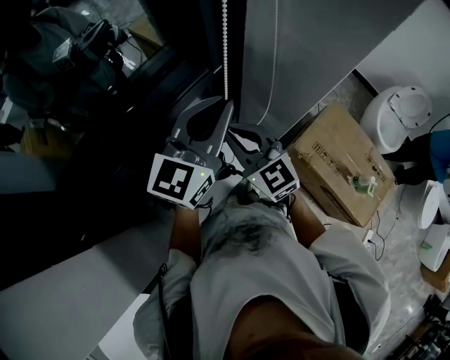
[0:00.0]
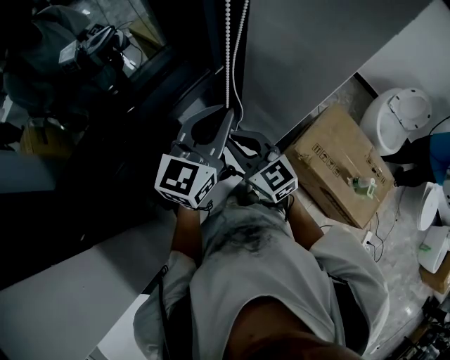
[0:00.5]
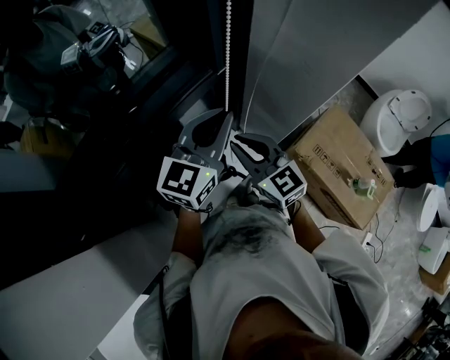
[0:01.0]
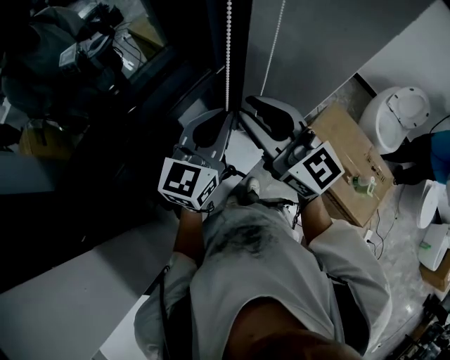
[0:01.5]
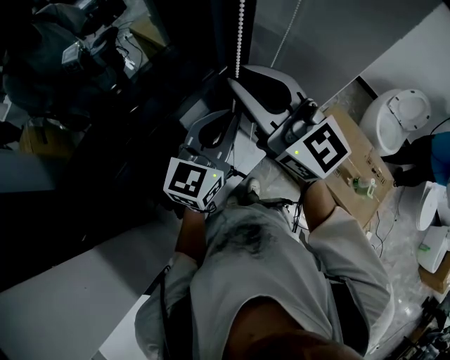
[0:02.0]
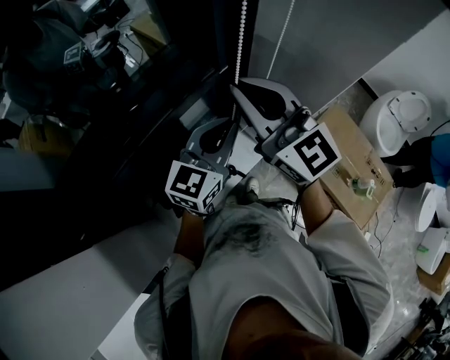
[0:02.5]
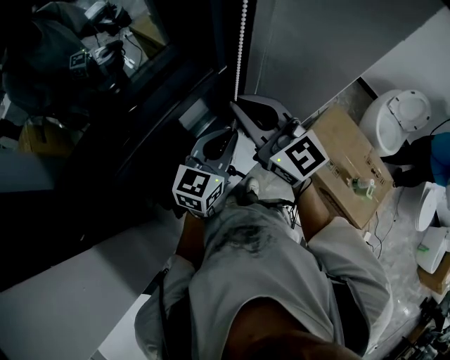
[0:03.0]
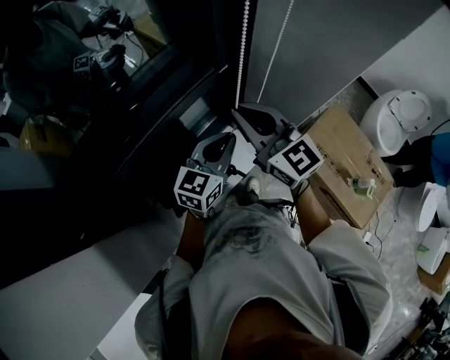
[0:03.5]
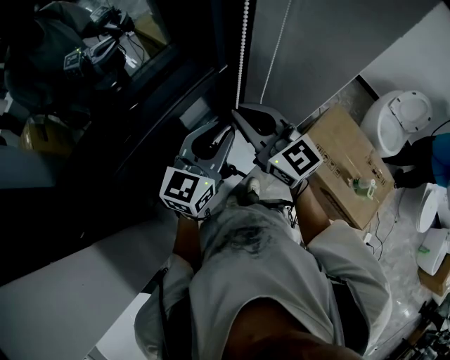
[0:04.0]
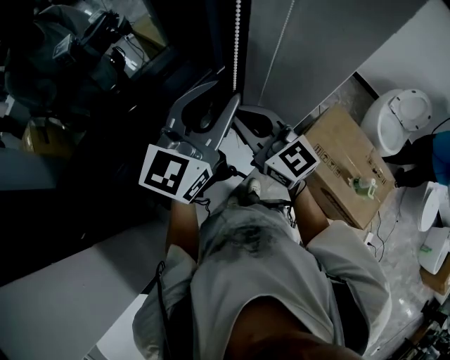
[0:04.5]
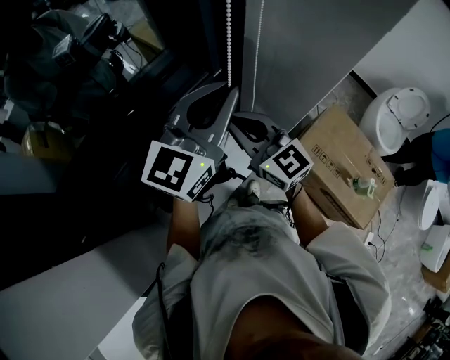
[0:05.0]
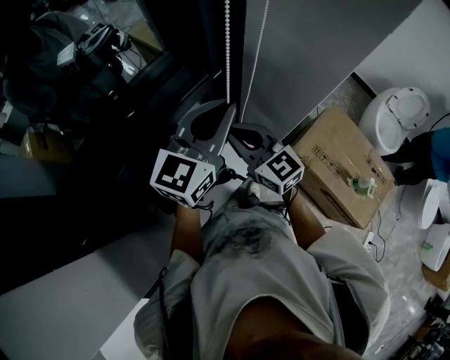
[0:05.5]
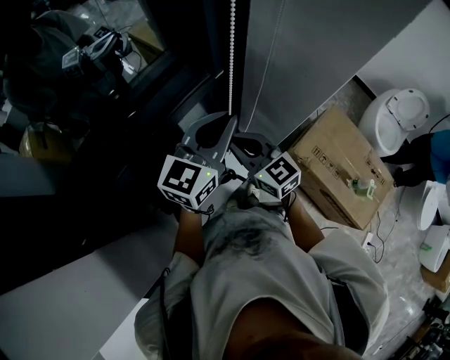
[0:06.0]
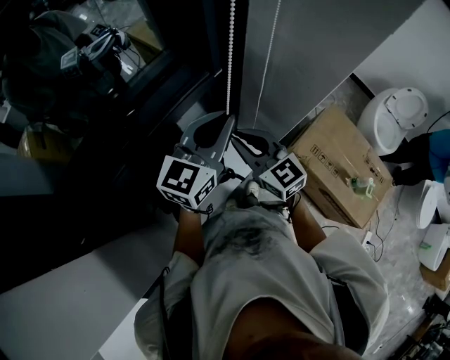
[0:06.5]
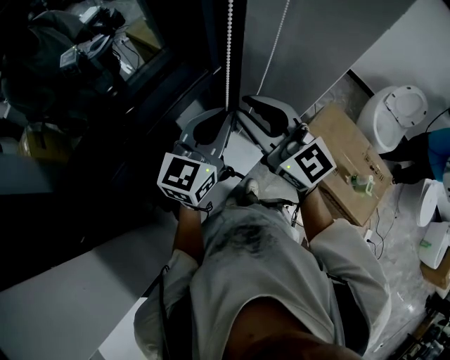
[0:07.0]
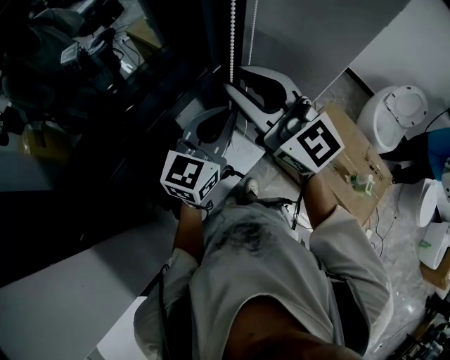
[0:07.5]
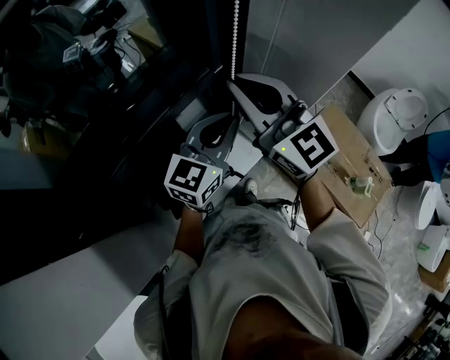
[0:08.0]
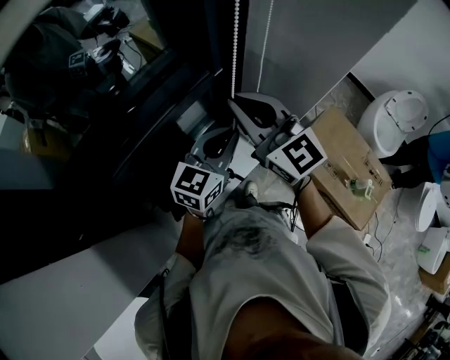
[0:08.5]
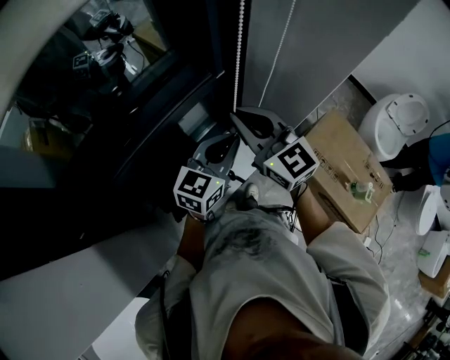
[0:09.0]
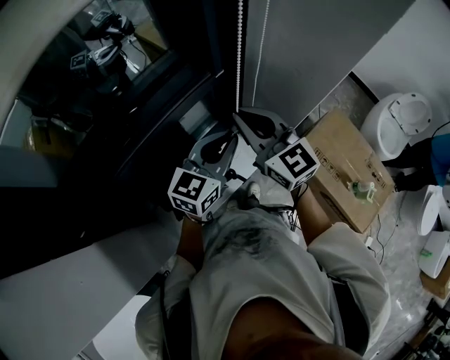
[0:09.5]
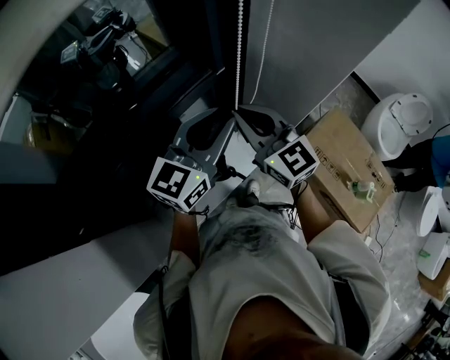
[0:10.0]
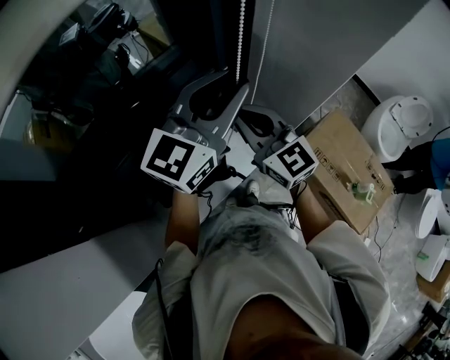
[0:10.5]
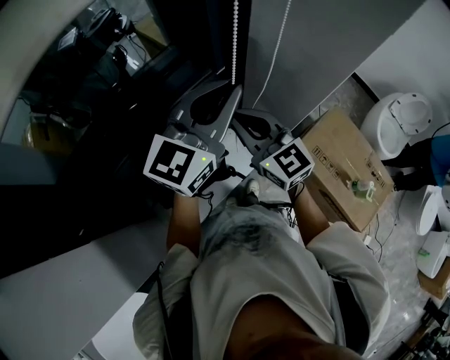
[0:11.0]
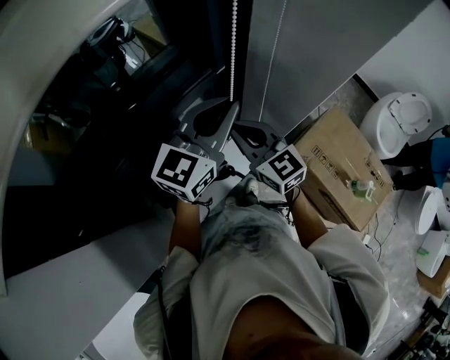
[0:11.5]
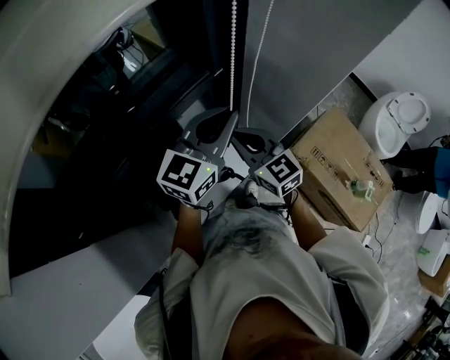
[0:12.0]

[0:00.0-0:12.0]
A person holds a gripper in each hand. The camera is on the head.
0:00.0 to 0:02.0: The right gripper moves upward, about 20 cm, and changes its angle by some 20 degrees; the left gripper moves downward, some 5 cm.
0:02.0 to 0:04.0: The left gripper opens its fingers. The right gripper travels downward by some 10 cm.
0:04.0 to 0:06.0: The right gripper heads downward, covering some 10 cm. The left gripper moves some 15 cm upward and comes back.
0:06.0 to 0:08.0: The right gripper goes approximately 20 cm upward, and swivels approximately 20 degrees.
0:08.0 to 0:10.0: The right gripper is displaced downward by approximately 10 cm.
0:10.0 to 0:12.0: The left gripper goes upward and returns, about 10 cm each way. Meanwhile the right gripper moves downward, approximately 10 cm.

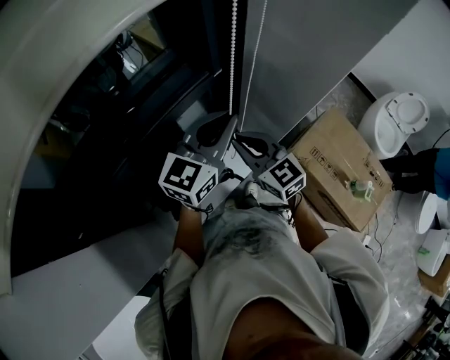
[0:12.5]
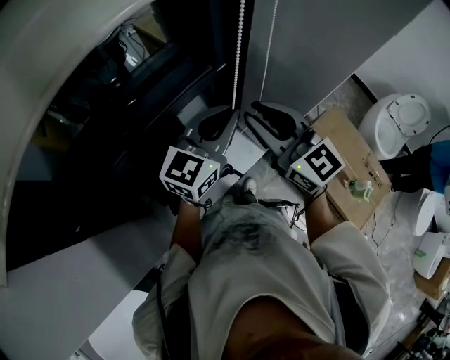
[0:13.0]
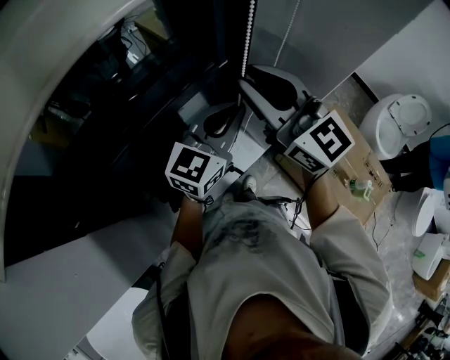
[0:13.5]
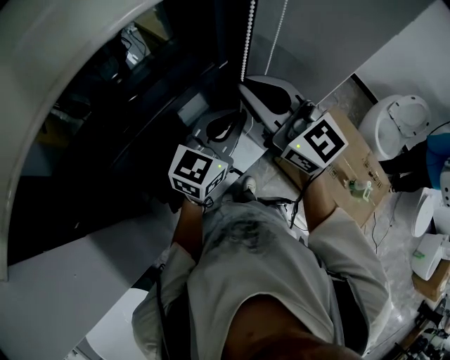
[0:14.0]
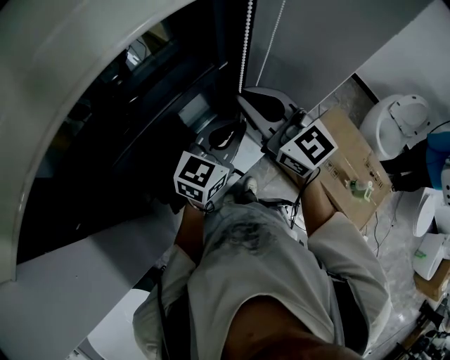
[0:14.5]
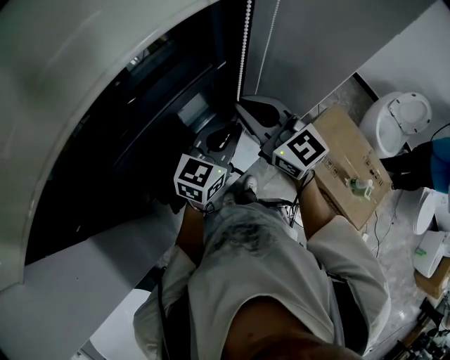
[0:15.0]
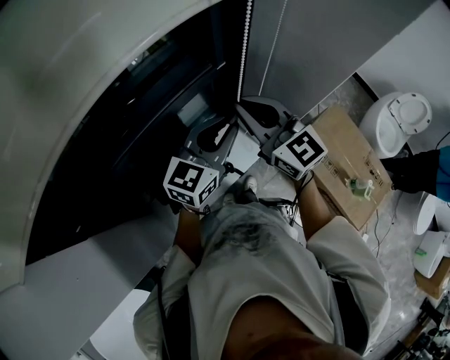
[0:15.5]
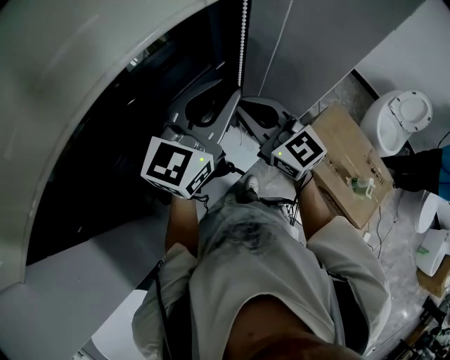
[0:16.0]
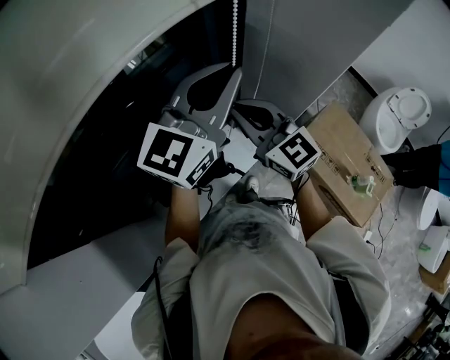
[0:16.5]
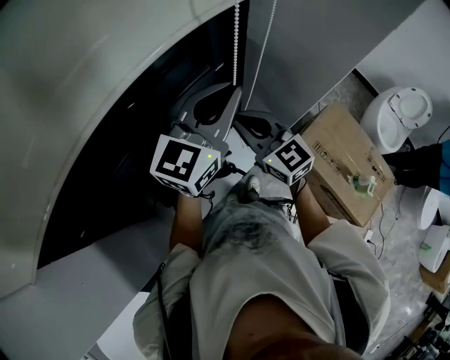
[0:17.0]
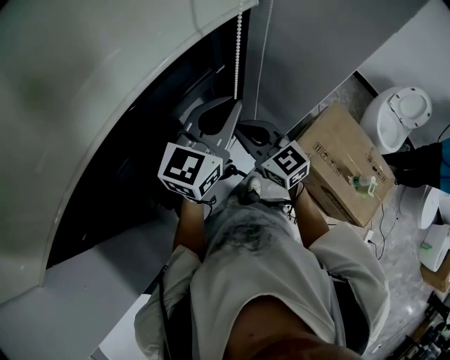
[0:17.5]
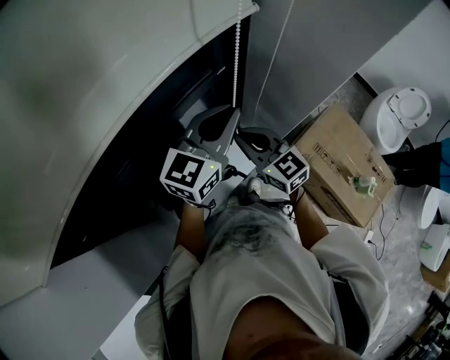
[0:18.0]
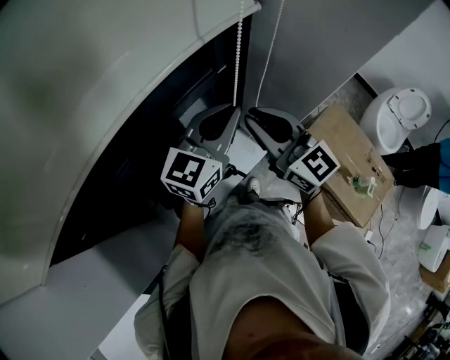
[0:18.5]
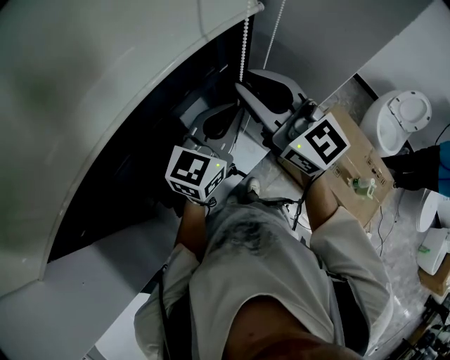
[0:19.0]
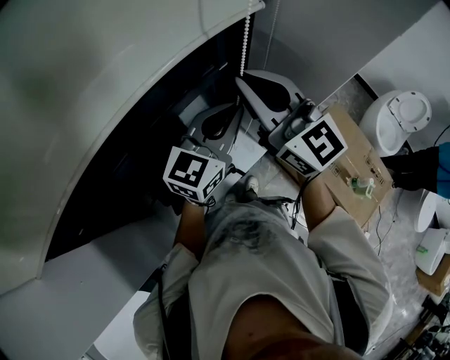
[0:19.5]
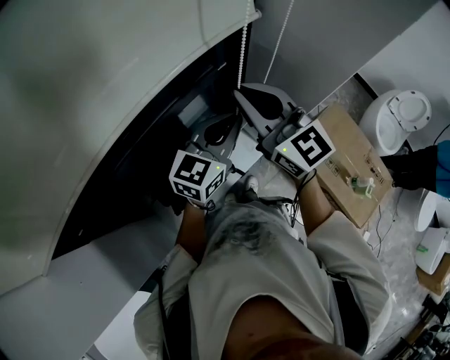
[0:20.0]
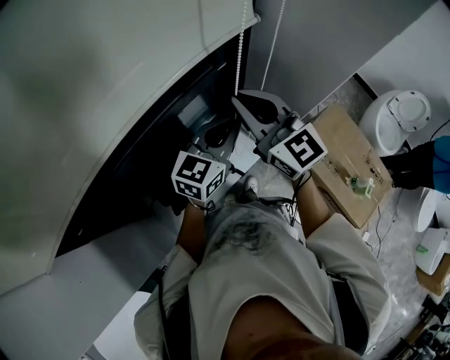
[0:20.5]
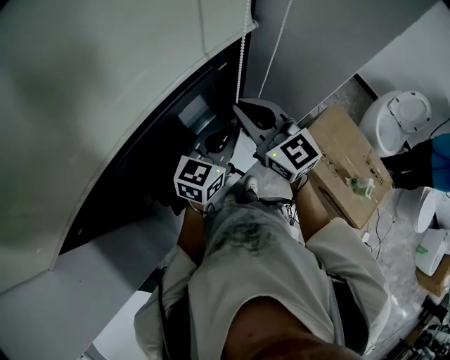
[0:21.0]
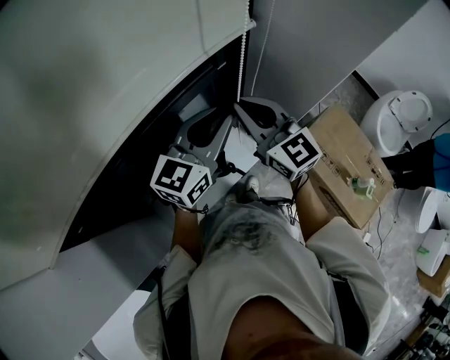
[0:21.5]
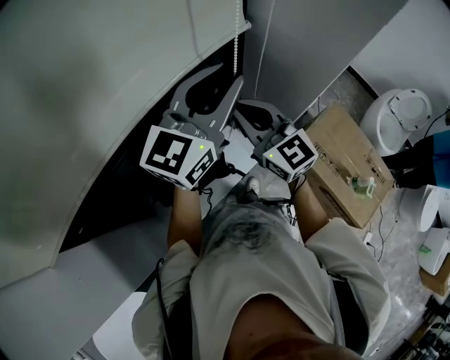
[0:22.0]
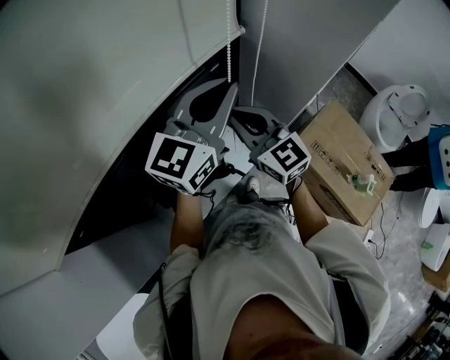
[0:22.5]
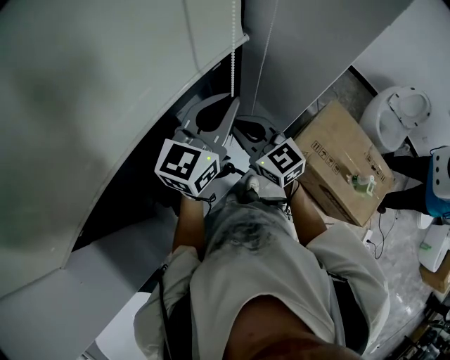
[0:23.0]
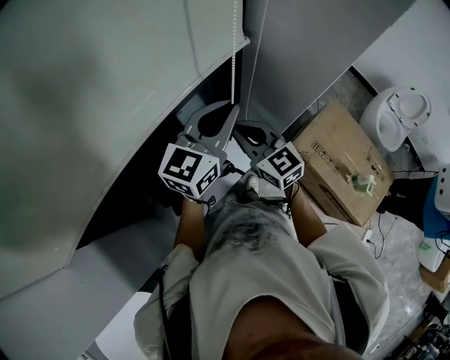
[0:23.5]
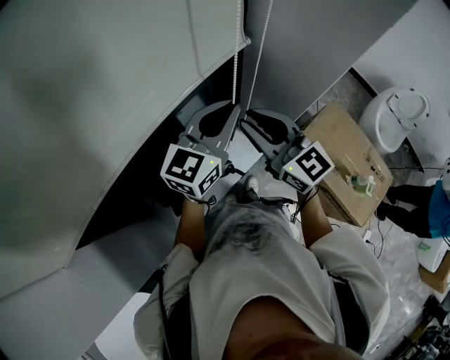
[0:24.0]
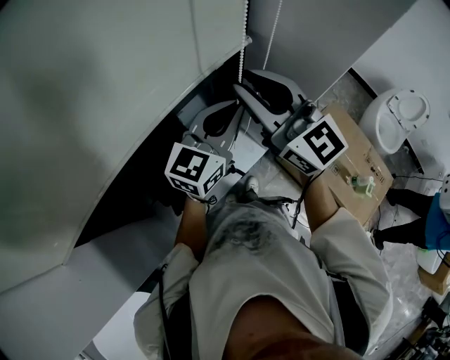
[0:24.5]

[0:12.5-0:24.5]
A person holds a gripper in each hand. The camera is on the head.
0:12.5 to 0:14.5: The right gripper shifts roughly 15 cm upward. Meanwhile the left gripper goes some 5 cm downward.
0:14.5 to 0:16.5: The left gripper is displaced upward by approximately 15 cm, and changes its angle by approximately 20 degrees.
0:16.5 to 0:18.5: The left gripper is displaced downward by roughly 10 cm. The right gripper reaches approximately 10 cm downward, then returns.
0:18.5 to 0:20.5: The right gripper goes upward and returns, about 10 cm each way, while the left gripper moves downward, approximately 5 cm.
0:20.5 to 0:22.5: The right gripper is displaced downward by about 5 cm, while the left gripper shifts roughly 15 cm upward, and opens, then closes again.
0:22.5 to 0:24.5: The right gripper shifts about 10 cm upward. The left gripper travels downward by about 5 cm.

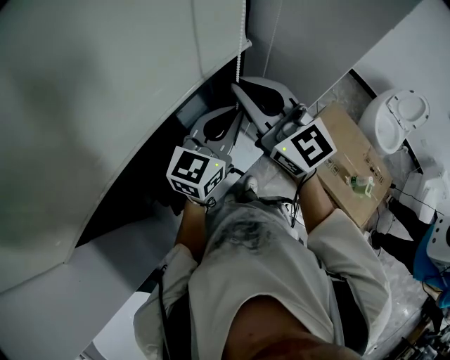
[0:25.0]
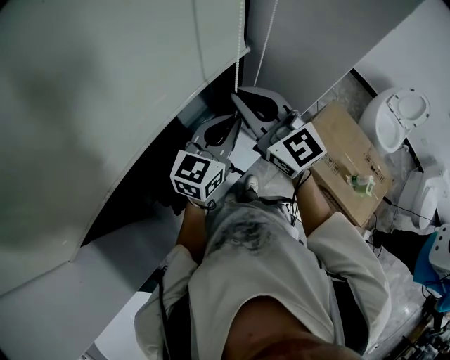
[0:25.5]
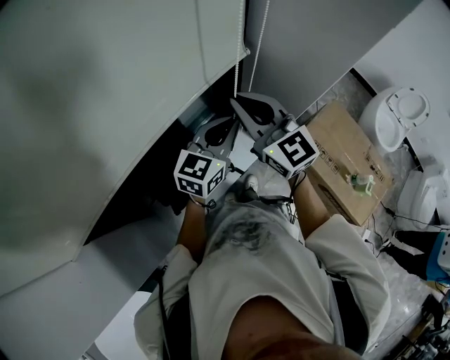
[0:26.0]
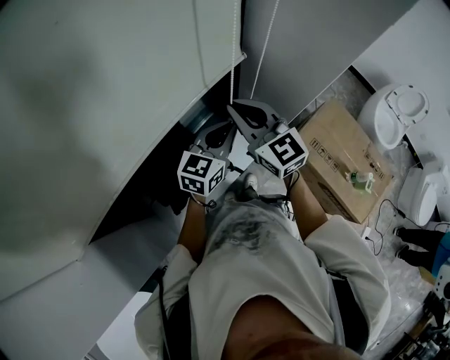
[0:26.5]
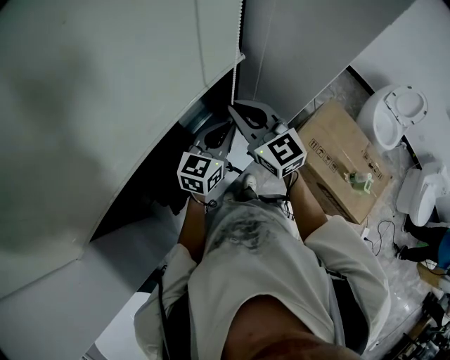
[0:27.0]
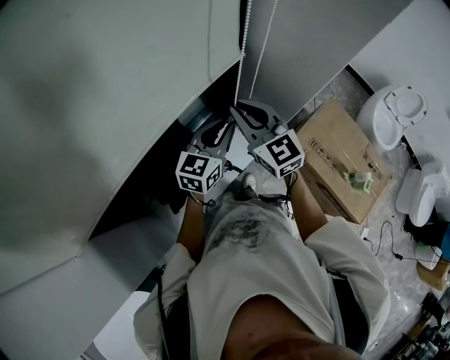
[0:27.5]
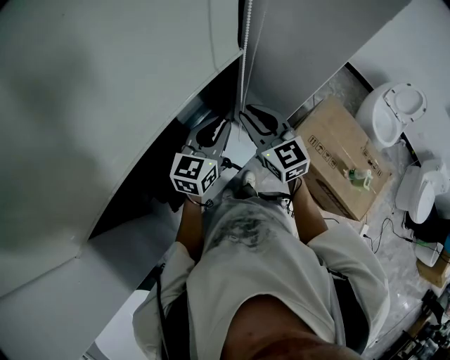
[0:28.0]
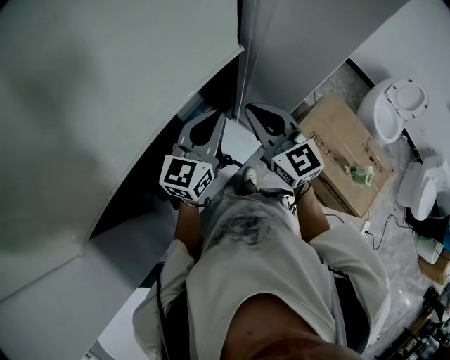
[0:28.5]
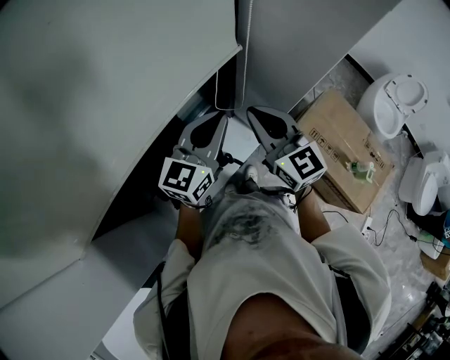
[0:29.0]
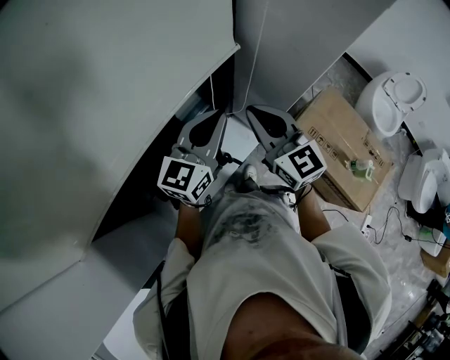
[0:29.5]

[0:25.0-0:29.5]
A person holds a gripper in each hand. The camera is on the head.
0:25.0 to 0:27.0: Both grippers travel together downward, roughly 10 cm.
0:27.0 to 0:29.5: The right gripper ends up roughly 5 cm from where it was. Meanwhile the left gripper moves upward, approximately 10 cm.
